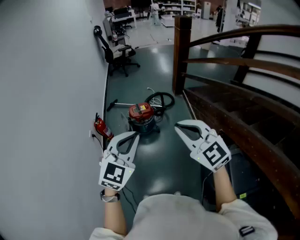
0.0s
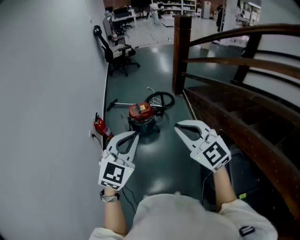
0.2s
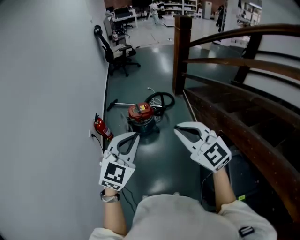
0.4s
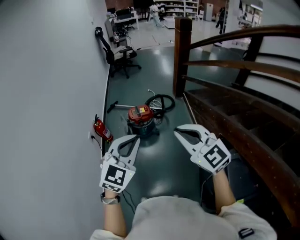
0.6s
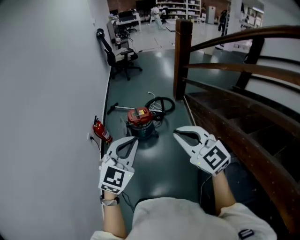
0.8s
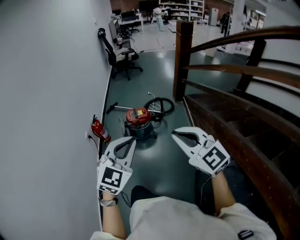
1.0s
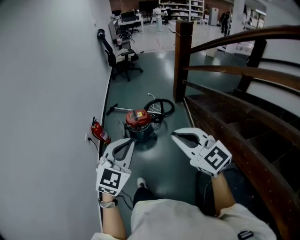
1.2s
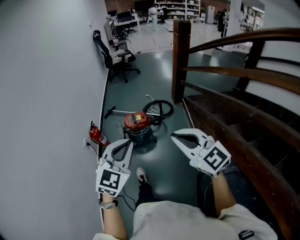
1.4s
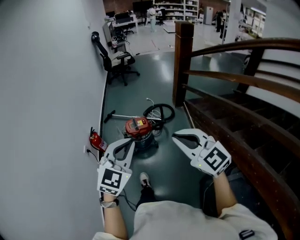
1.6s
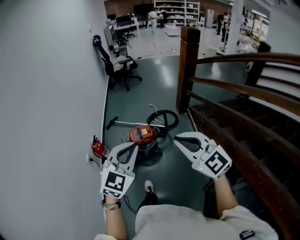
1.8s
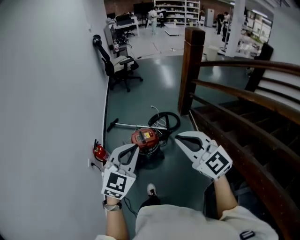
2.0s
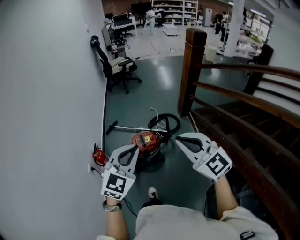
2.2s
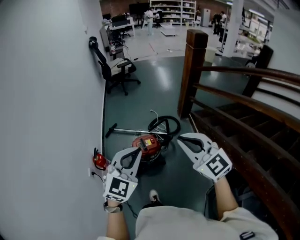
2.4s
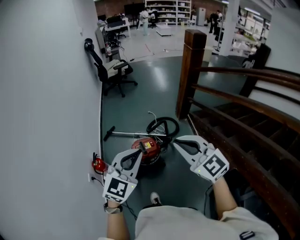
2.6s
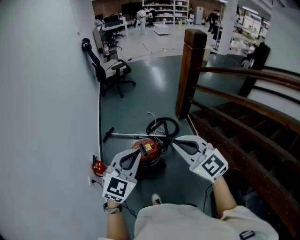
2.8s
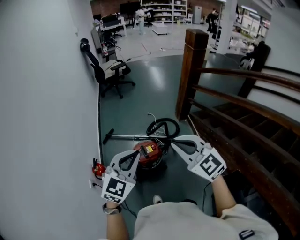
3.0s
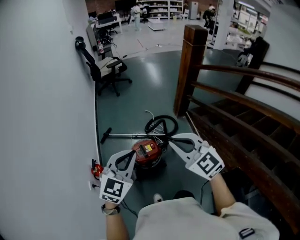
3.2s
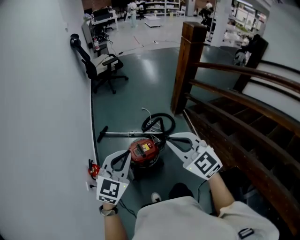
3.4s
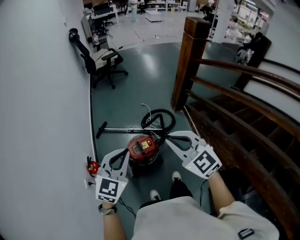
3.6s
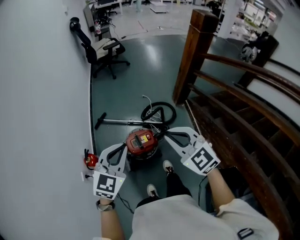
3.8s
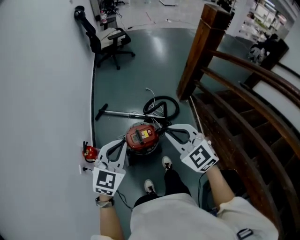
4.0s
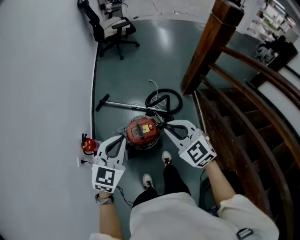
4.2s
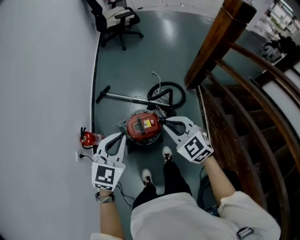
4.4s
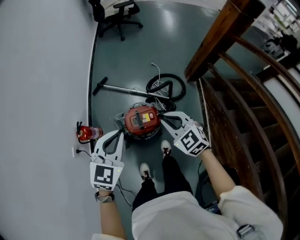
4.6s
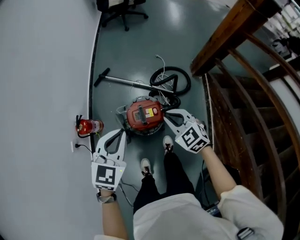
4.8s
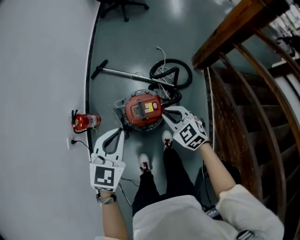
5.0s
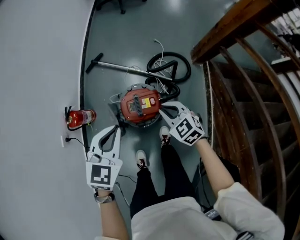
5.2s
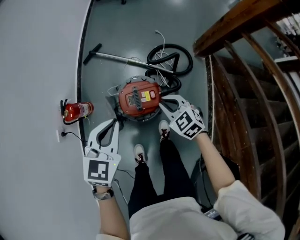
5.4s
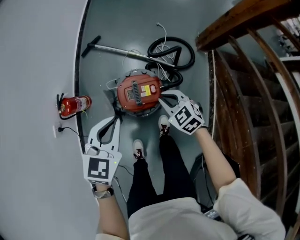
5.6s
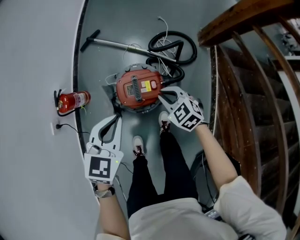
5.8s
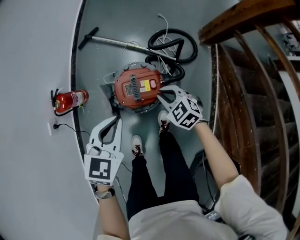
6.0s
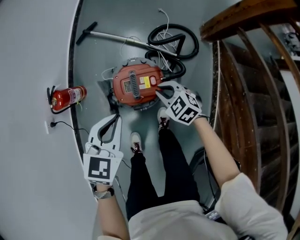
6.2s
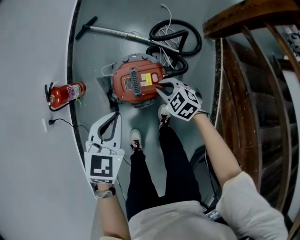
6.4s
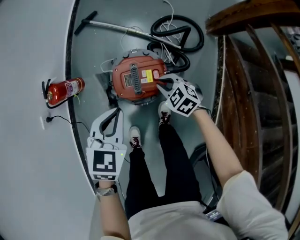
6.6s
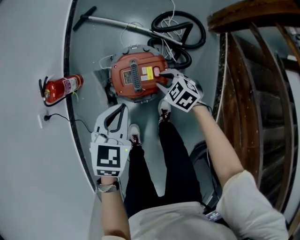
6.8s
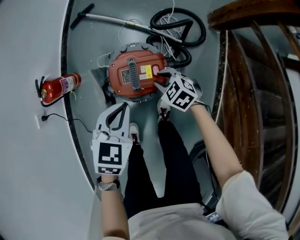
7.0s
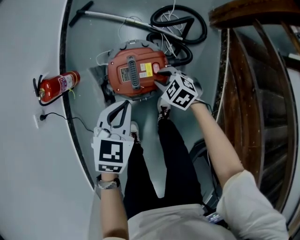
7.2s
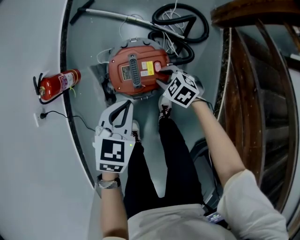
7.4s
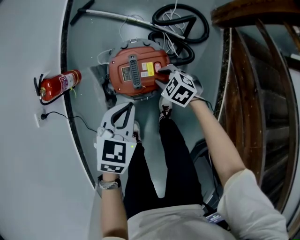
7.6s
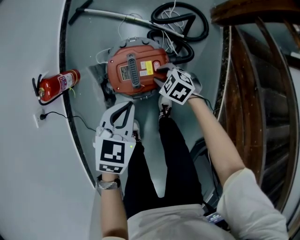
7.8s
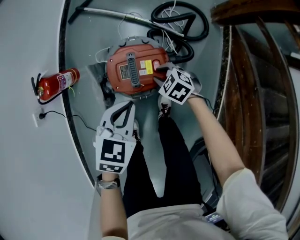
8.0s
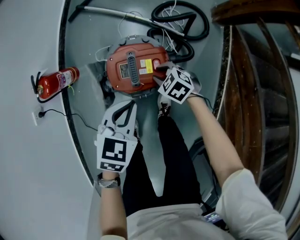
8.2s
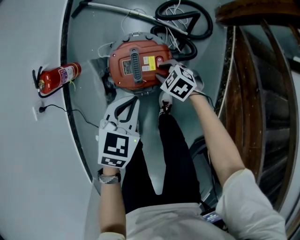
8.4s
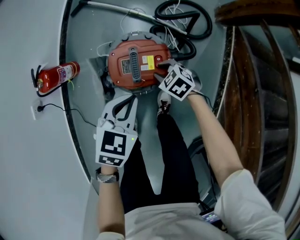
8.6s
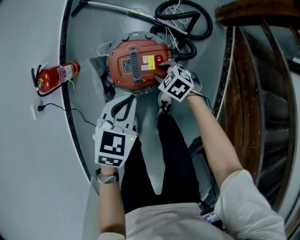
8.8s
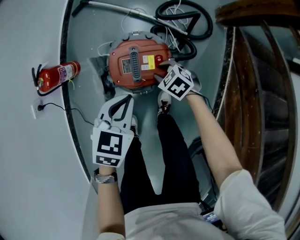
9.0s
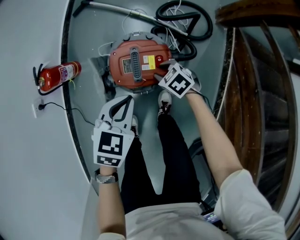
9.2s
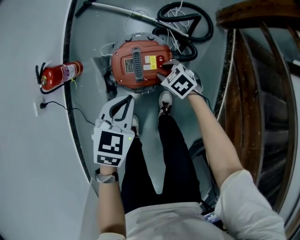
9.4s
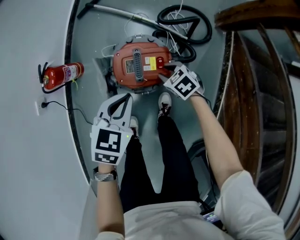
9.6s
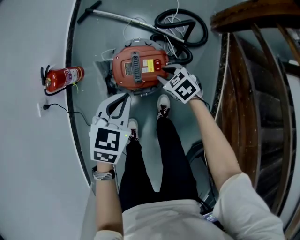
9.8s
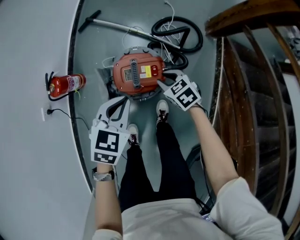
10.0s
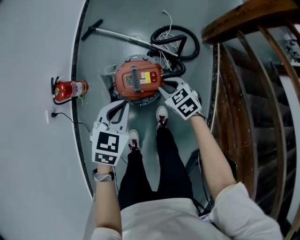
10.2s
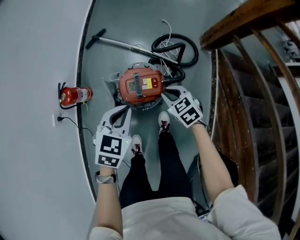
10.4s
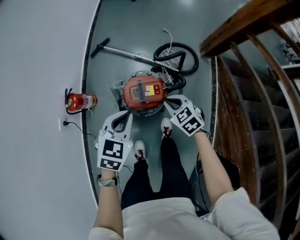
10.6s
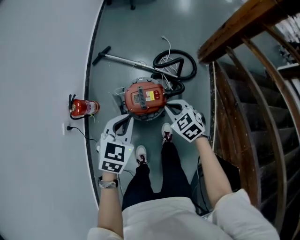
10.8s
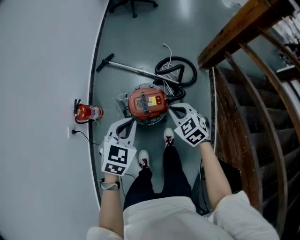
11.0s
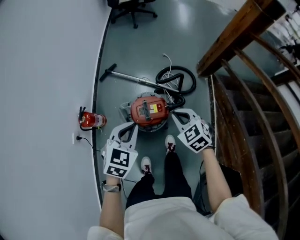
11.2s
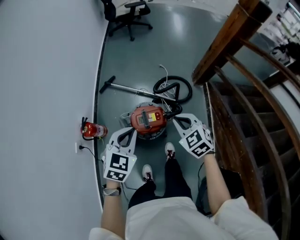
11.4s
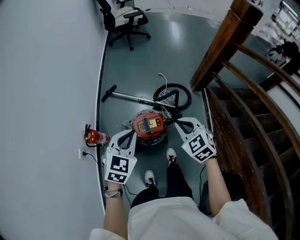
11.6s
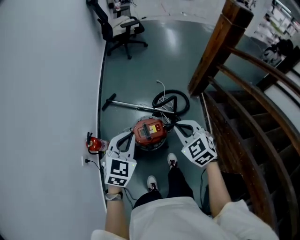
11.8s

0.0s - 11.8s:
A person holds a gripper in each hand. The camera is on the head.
0.0s - 1.4s: The right gripper goes some 10 cm to the right and forward. The left gripper heads forward and to the right, covering about 10 cm.
1.4s - 3.0s: The grippers both shift forward by approximately 35 cm.
3.0s - 4.4s: The right gripper goes some 25 cm downward and forward, and swivels some 20 degrees, while the left gripper is displaced forward and downward by approximately 20 cm, and rotates approximately 20 degrees.
4.4s - 6.0s: The two grippers go about 30 cm downward. The right gripper swivels approximately 20 degrees. The left gripper swivels roughly 20 degrees.
6.0s - 7.4s: The grippers both shift downward by roughly 15 cm. The right gripper opens.
7.4s - 8.8s: There are only small adjustments of the grippers.
8.8s - 10.4s: The two grippers go some 15 cm upward. The right gripper rotates roughly 20 degrees.
10.4s - 11.8s: Both grippers travel together upward, roughly 30 cm. The right gripper changes its angle by some 30 degrees. Meanwhile the left gripper swivels about 20 degrees.

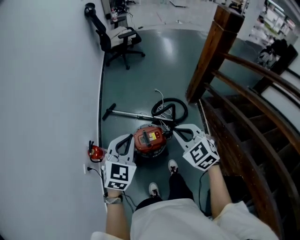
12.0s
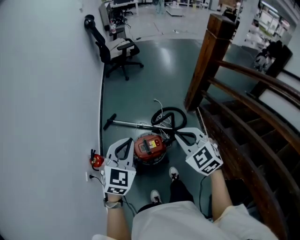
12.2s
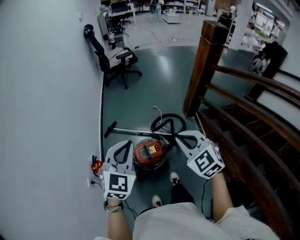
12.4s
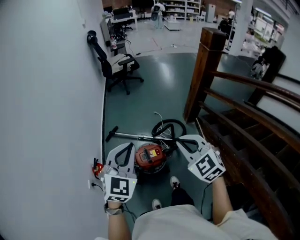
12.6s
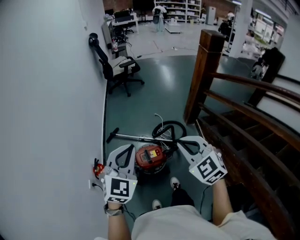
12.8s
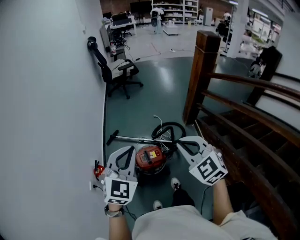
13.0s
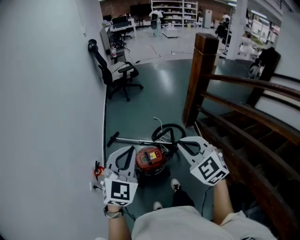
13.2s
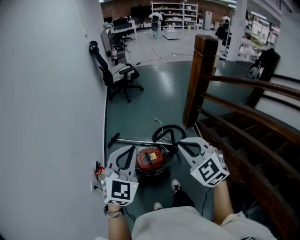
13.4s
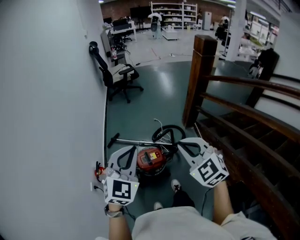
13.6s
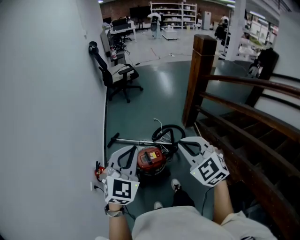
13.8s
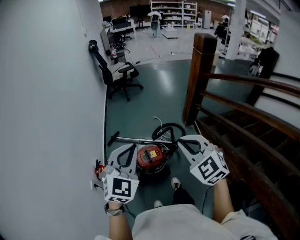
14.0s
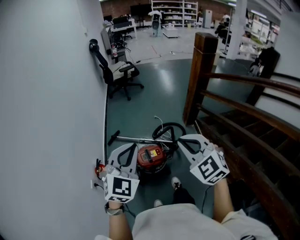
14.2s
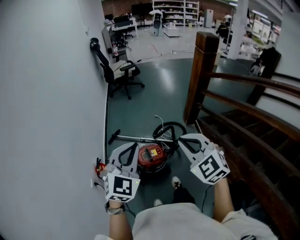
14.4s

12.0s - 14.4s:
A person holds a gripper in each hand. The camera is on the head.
12.0s - 13.2s: Both grippers move upward and backward, approximately 20 cm.
13.2s - 14.4s: There are only small adjustments of the grippers.

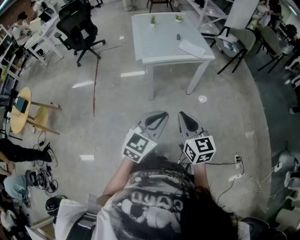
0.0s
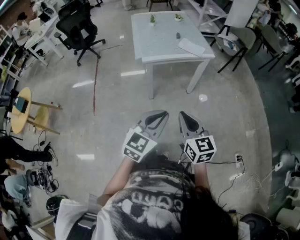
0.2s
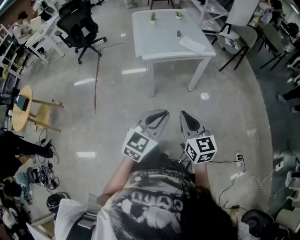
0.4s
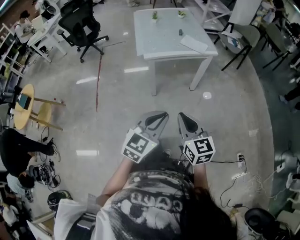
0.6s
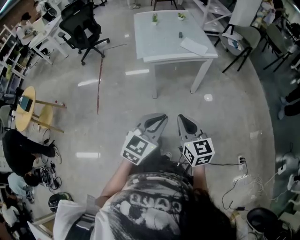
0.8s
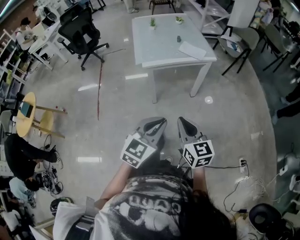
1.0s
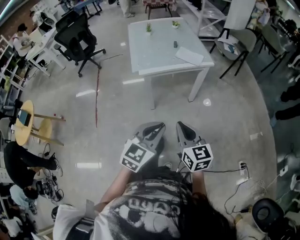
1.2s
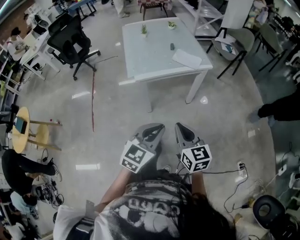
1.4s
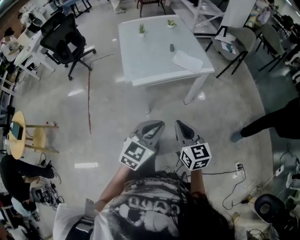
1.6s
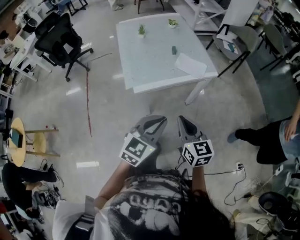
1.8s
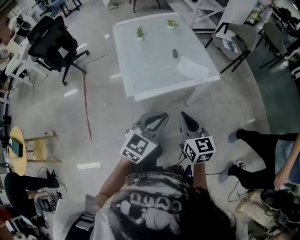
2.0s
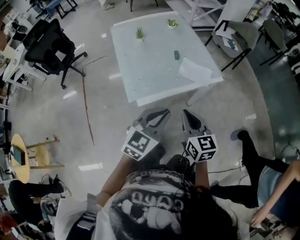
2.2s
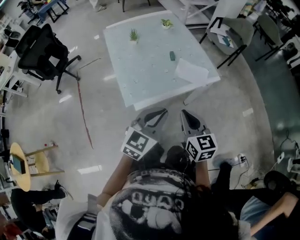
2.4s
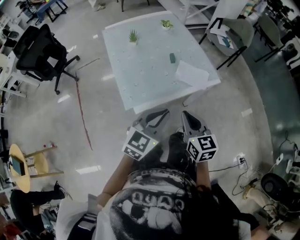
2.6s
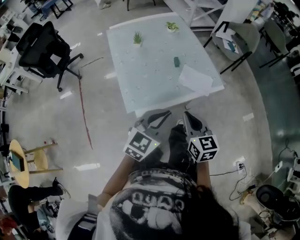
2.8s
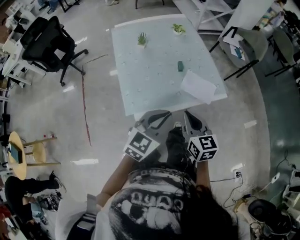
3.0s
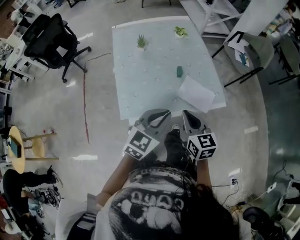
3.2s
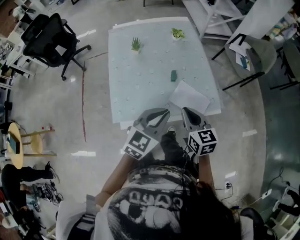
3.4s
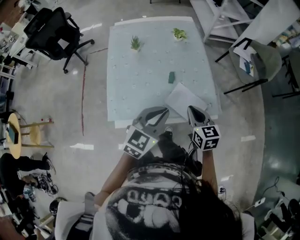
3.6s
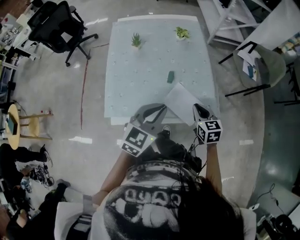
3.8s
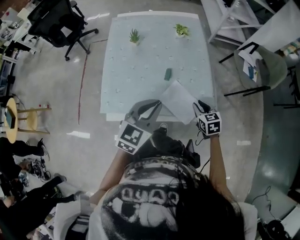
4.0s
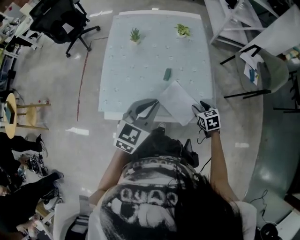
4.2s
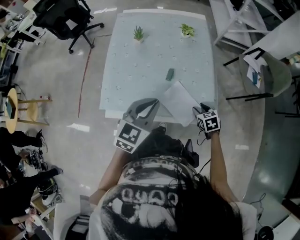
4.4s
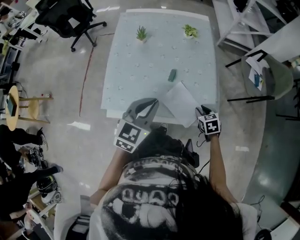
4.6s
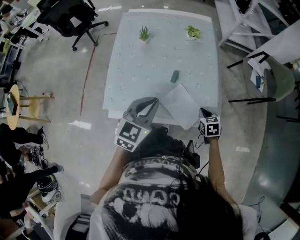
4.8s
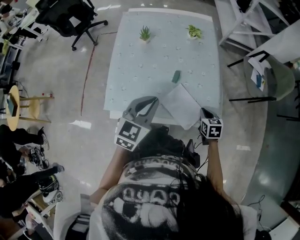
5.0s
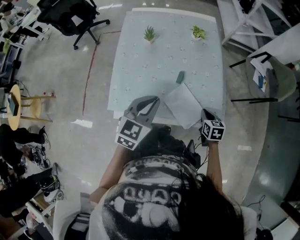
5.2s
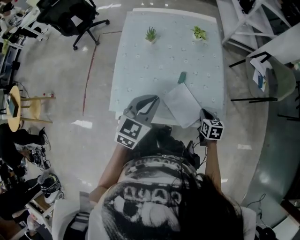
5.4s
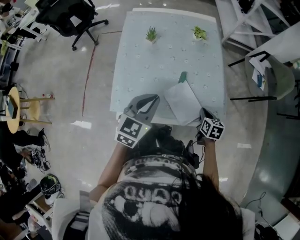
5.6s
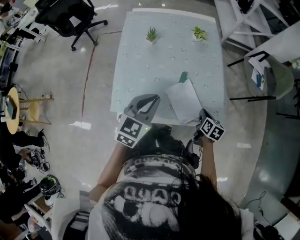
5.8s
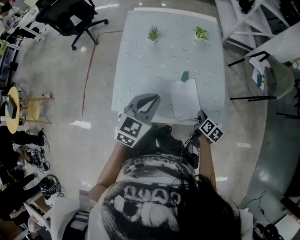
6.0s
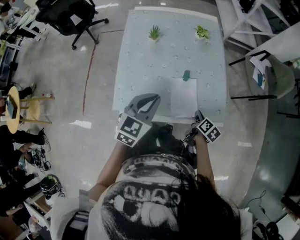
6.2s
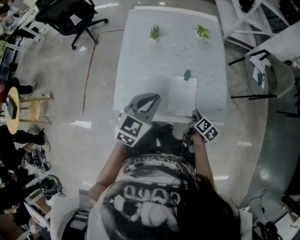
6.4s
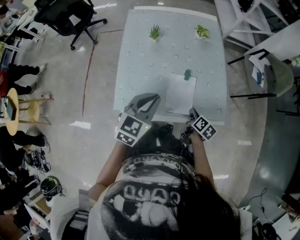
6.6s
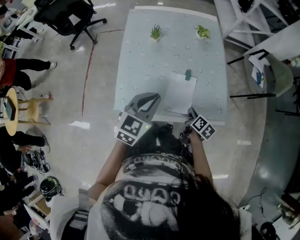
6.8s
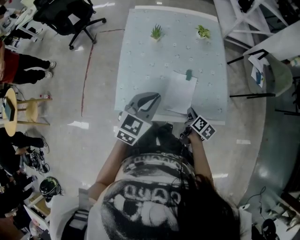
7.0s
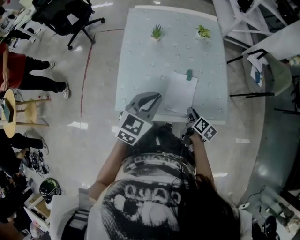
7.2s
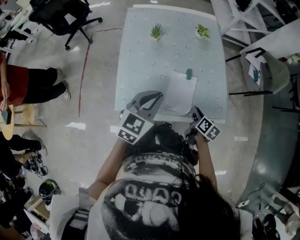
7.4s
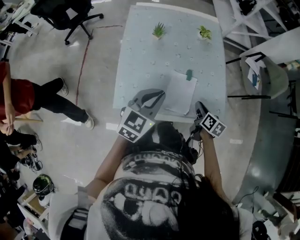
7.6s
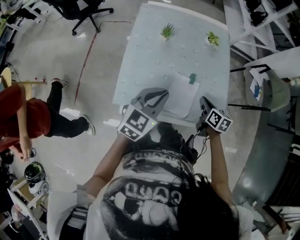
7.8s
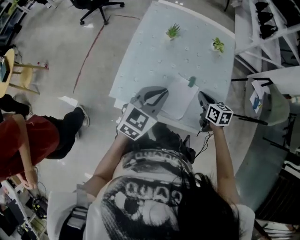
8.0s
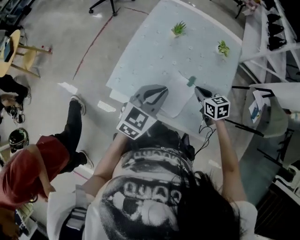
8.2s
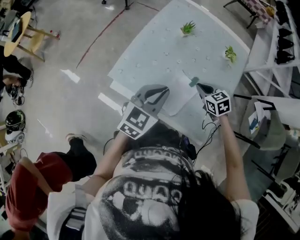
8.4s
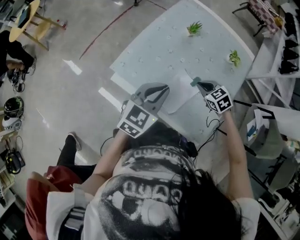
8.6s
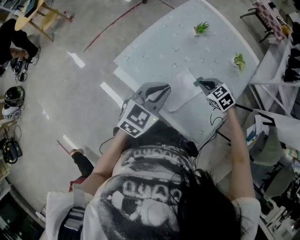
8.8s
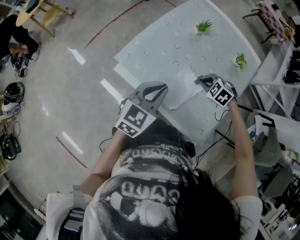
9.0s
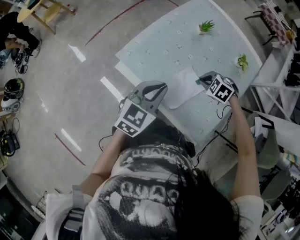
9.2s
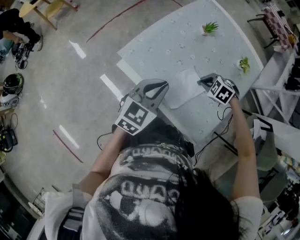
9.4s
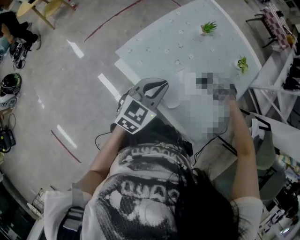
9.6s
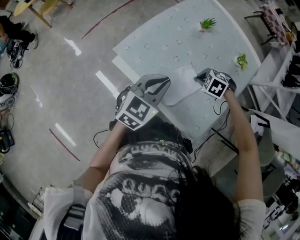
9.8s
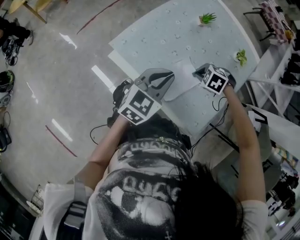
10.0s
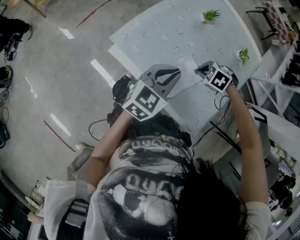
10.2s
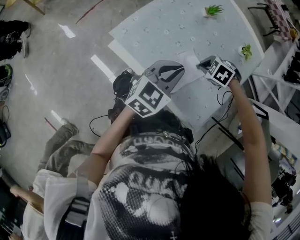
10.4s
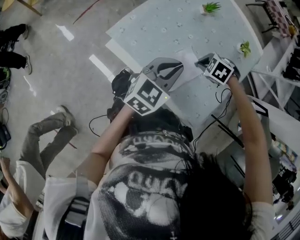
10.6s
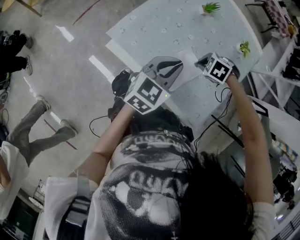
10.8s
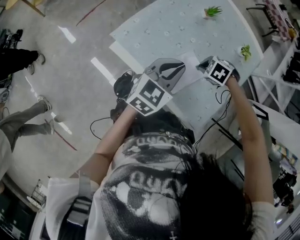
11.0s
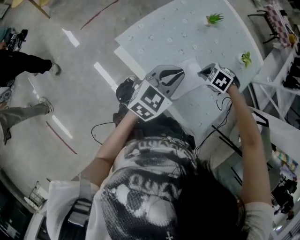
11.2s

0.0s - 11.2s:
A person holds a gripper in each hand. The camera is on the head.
0.0s - 1.6s: The two grippers go some 20 cm forward.
1.6s - 3.2s: Both grippers move forward, about 35 cm.
3.2s - 4.8s: The right gripper is displaced to the right, downward and forward by roughly 35 cm, points its fingers roughly 30 degrees further downward, and opens and closes again. Meanwhile the left gripper travels forward by roughly 10 cm, and swivels about 30 degrees.
4.8s - 6.4s: Both grippers travel together to the left, approximately 10 cm. The right gripper twists some 60 degrees clockwise, seen from behind.
6.4s - 8.0s: The right gripper heads forward, upward and to the left, covering roughly 15 cm, and twists some 50 degrees counterclockwise, seen from behind.
8.0s - 9.6s: The right gripper shifts roughly 5 cm downward, and rotates around the line of its fingers by about 90 degrees, counterclockwise from behind; the left gripper ends up some 5 cm from where it was, and swivels roughly 30 degrees.
9.6s - 11.2s: The grippers move only a little.
